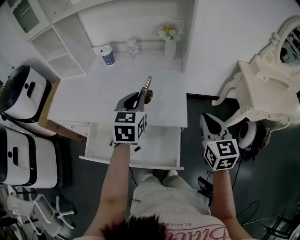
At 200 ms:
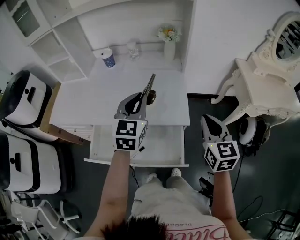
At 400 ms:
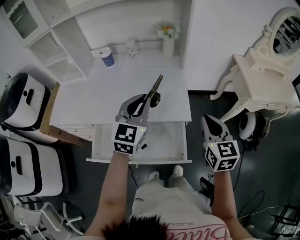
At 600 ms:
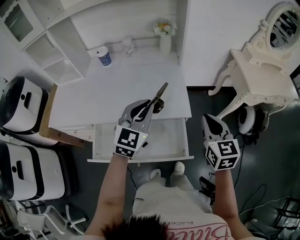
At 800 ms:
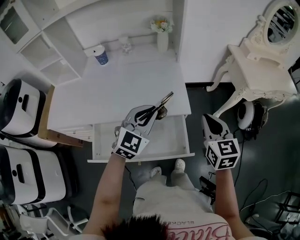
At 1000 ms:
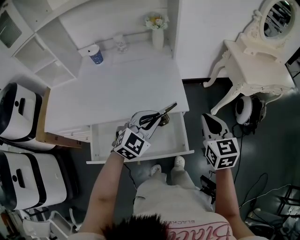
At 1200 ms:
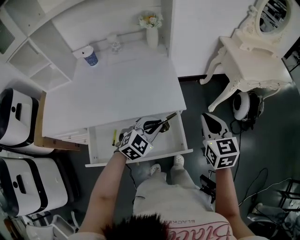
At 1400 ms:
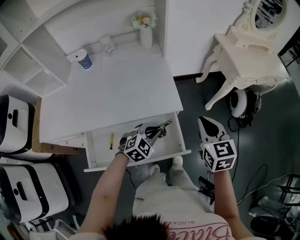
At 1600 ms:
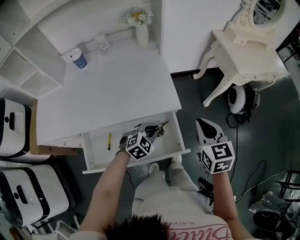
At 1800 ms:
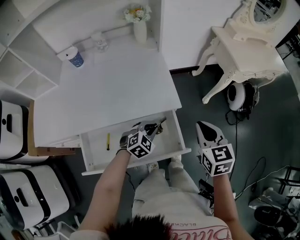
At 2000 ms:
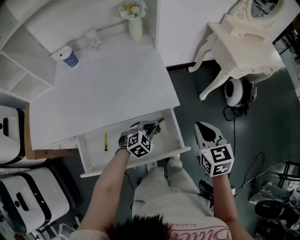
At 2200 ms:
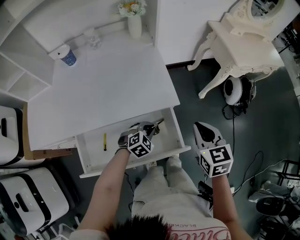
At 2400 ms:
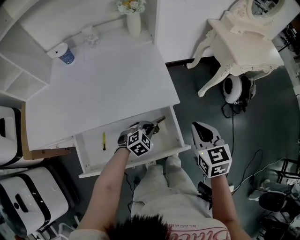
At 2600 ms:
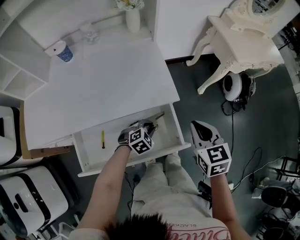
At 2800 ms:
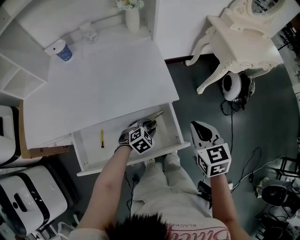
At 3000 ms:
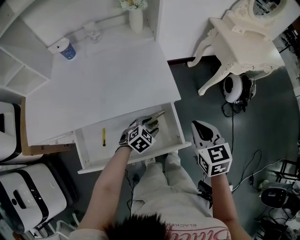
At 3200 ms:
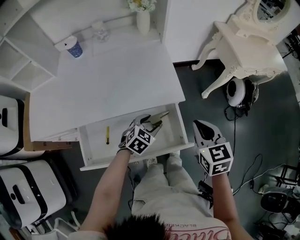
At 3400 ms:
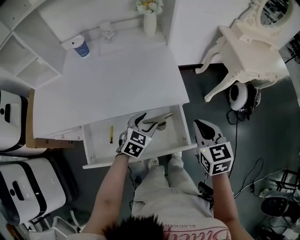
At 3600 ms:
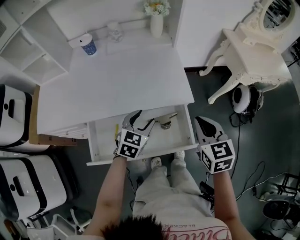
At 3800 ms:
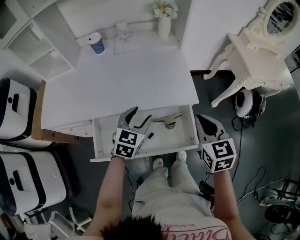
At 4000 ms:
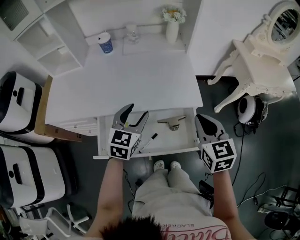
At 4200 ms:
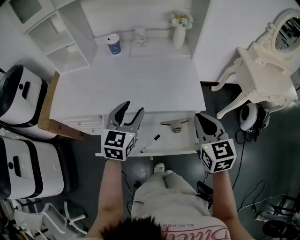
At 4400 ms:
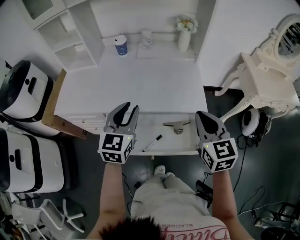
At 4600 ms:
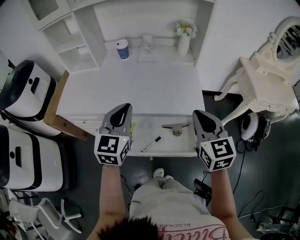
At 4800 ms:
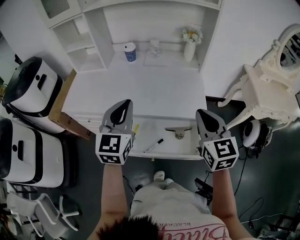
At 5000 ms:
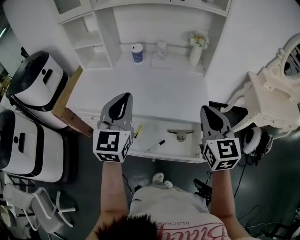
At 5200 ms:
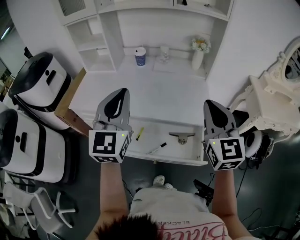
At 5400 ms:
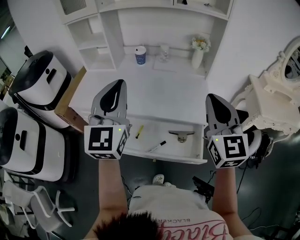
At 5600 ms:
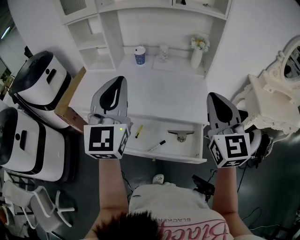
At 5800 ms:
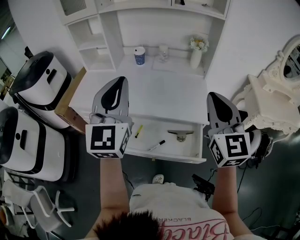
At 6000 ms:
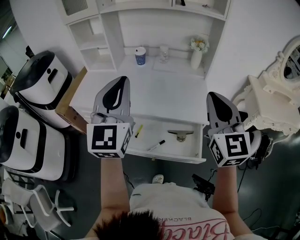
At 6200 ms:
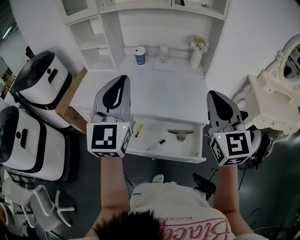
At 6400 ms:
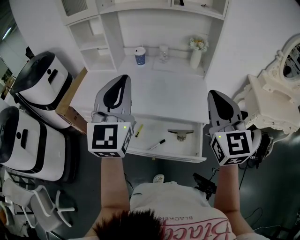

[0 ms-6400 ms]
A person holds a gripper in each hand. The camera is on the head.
0 ms to 1600 ms: The right gripper moves some 10 cm. The left gripper goes approximately 25 cm downward, and changes its angle by approximately 60 degrees.
1600 ms to 3200 ms: The right gripper moves approximately 5 cm. The left gripper goes downward and returns, about 10 cm each way, and opens.
3200 ms to 4800 ms: The left gripper shifts roughly 35 cm upward, points its fingers some 40 degrees further upward, and closes its fingers; the right gripper travels upward by approximately 15 cm, and changes its angle by about 30 degrees.
4800 ms to 6400 ms: Both grippers travel together upward, roughly 15 cm.

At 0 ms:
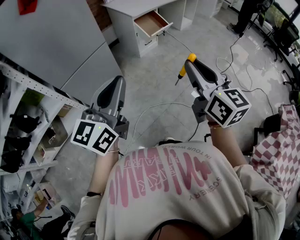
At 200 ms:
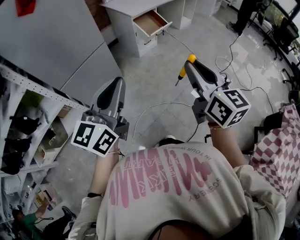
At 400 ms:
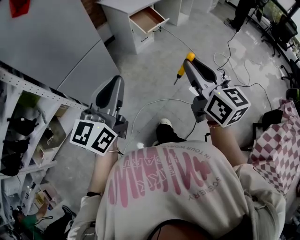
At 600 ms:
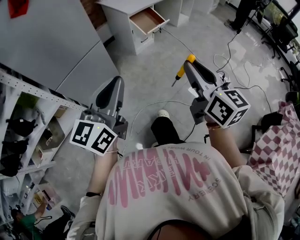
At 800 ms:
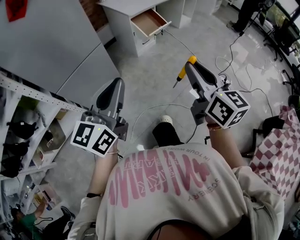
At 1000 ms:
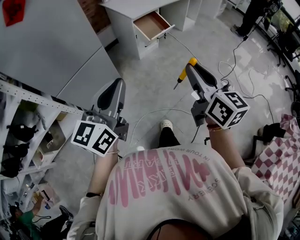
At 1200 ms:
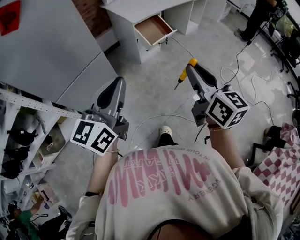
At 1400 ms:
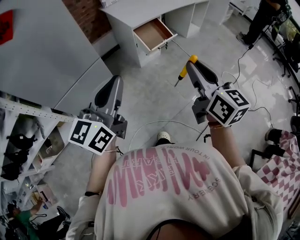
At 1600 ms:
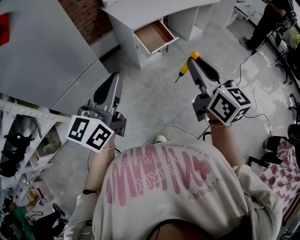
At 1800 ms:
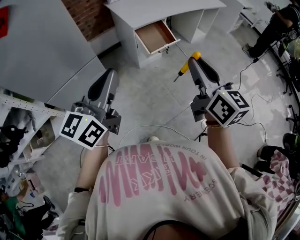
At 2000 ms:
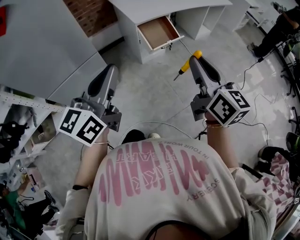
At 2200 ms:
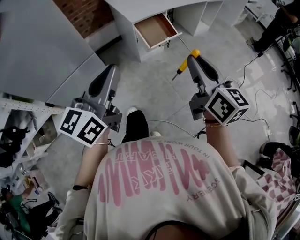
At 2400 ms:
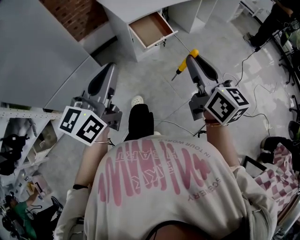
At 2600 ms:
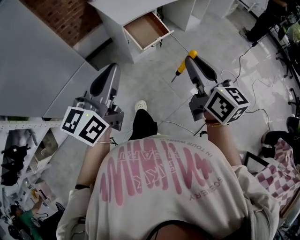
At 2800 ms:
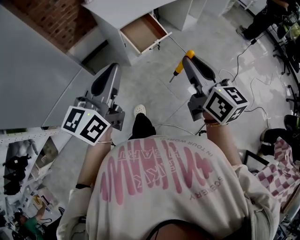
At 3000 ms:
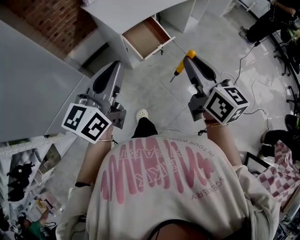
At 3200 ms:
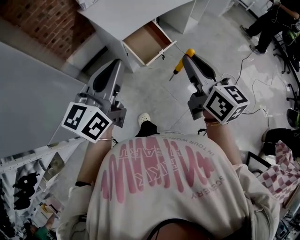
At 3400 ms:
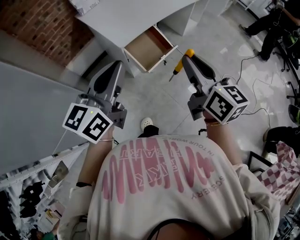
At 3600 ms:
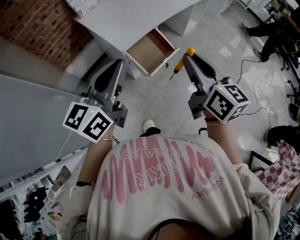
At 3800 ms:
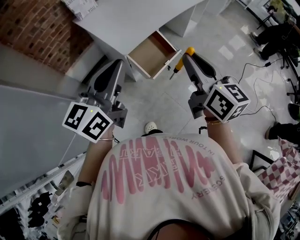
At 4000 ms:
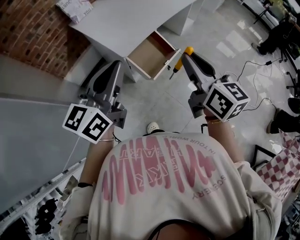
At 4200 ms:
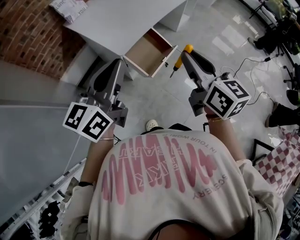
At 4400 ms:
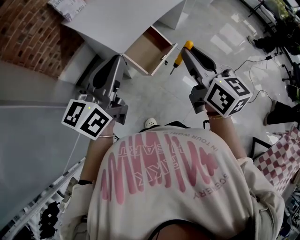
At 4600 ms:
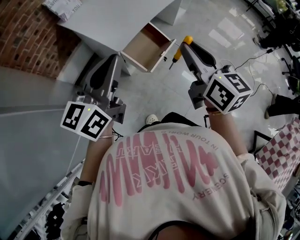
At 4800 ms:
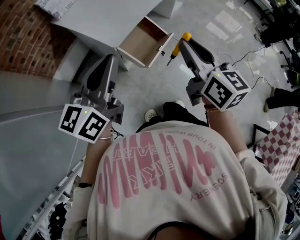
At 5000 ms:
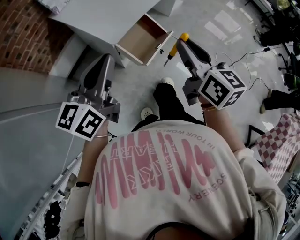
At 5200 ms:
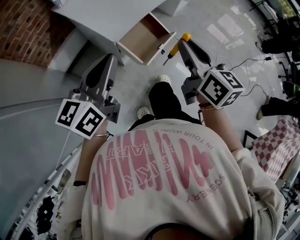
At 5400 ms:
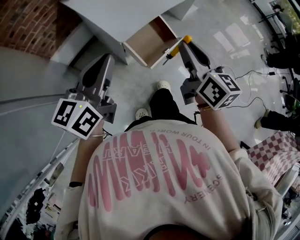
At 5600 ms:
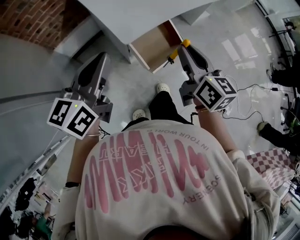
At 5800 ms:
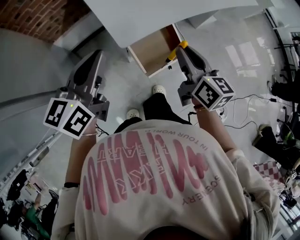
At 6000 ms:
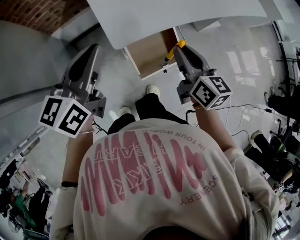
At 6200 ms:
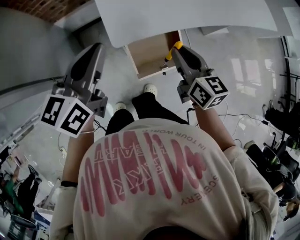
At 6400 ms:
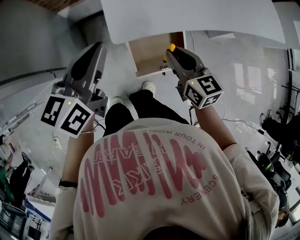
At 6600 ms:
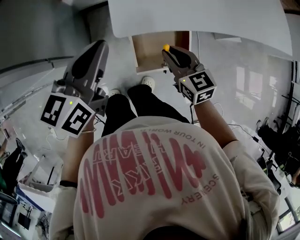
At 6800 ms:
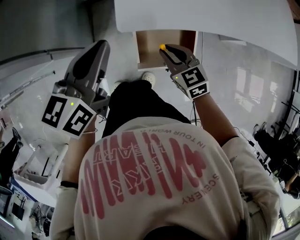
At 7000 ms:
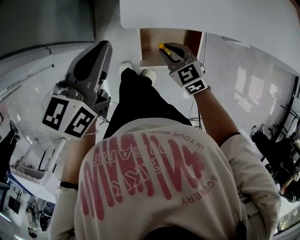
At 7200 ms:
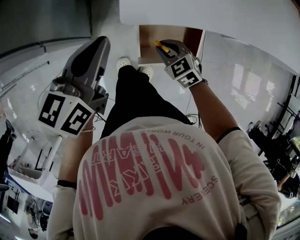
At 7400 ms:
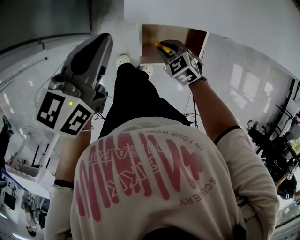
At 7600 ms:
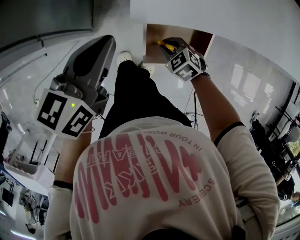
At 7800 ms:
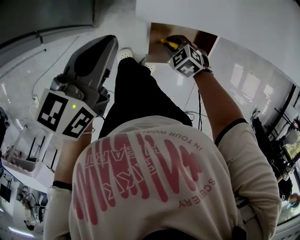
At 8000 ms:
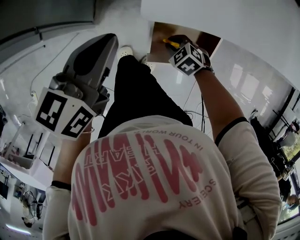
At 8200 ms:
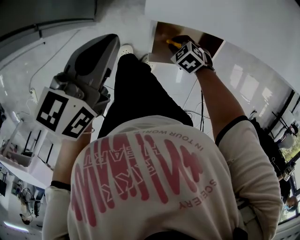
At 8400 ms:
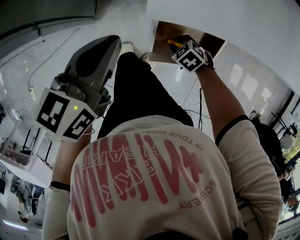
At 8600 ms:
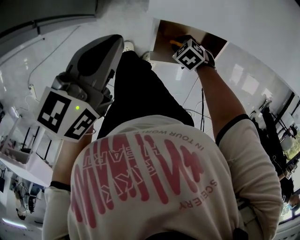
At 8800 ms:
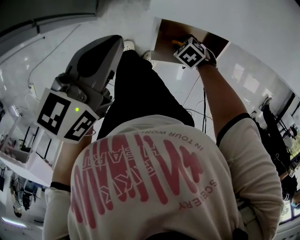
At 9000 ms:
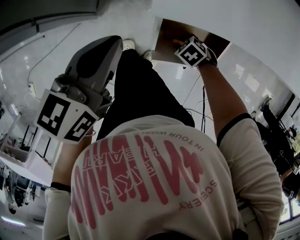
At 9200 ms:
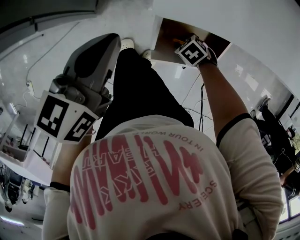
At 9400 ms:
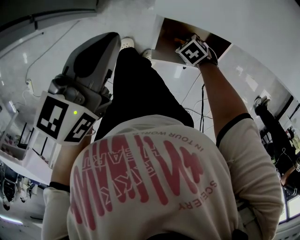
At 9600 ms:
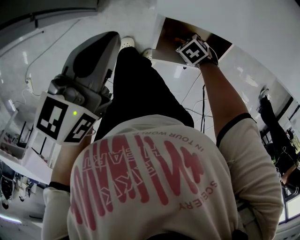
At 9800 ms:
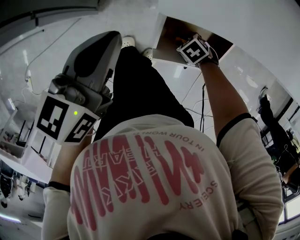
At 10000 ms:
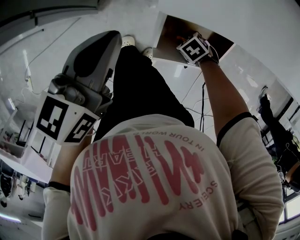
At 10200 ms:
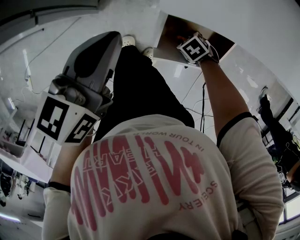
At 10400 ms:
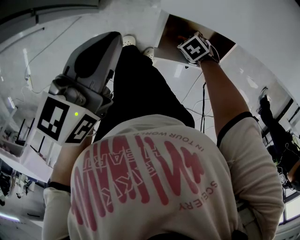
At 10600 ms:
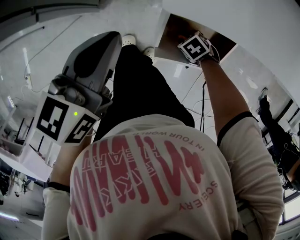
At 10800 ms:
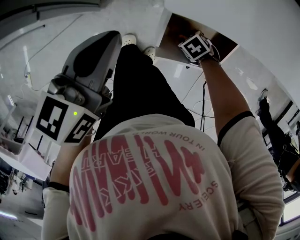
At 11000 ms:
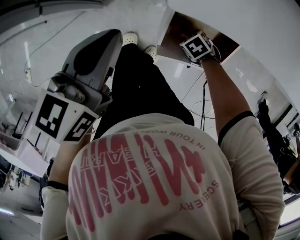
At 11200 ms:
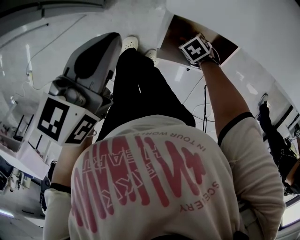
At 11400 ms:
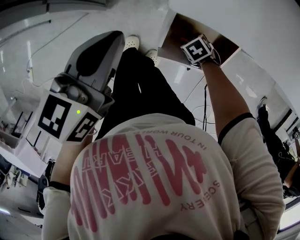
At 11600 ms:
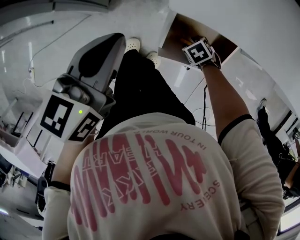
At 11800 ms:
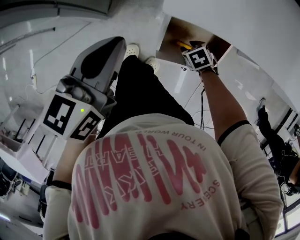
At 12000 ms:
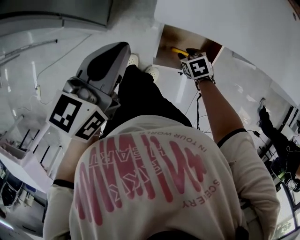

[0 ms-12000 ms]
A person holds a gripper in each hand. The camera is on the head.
0 ms to 1600 ms: The grippers both shift forward by approximately 25 cm.
1600 ms to 3000 ms: The two grippers go about 20 cm forward.
3000 ms to 4400 ms: The two grippers go about 20 cm forward and to the left.
4400 ms to 6000 ms: The right gripper shifts by approximately 25 cm, and turns by approximately 20 degrees, while the left gripper moves roughly 15 cm, and swivels approximately 30 degrees.
6000 ms to 7600 ms: The right gripper is displaced downward by roughly 30 cm, and angles its fingers downward, by roughly 40 degrees, while the left gripper heads downward, covering about 15 cm, and rotates about 20 degrees.
7600 ms to 9000 ms: The right gripper is displaced downward by about 10 cm, and rotates some 20 degrees.
9000 ms to 10400 ms: The grippers stay close to where they were, moving slightly.
10400 ms to 12000 ms: Both grippers move upward, some 10 cm. The right gripper turns by about 30 degrees.

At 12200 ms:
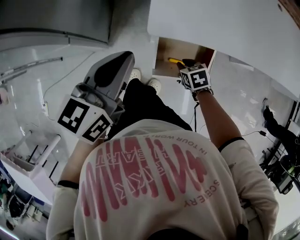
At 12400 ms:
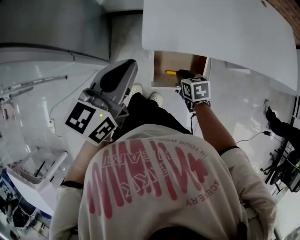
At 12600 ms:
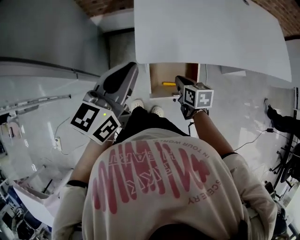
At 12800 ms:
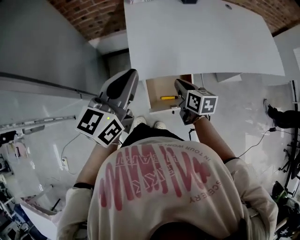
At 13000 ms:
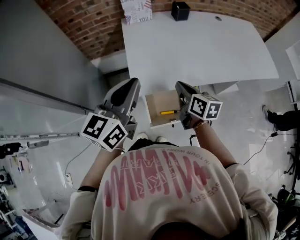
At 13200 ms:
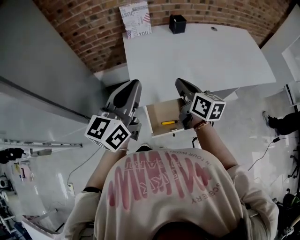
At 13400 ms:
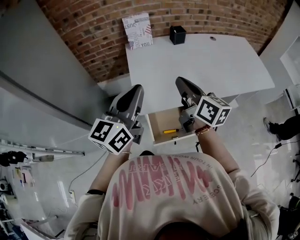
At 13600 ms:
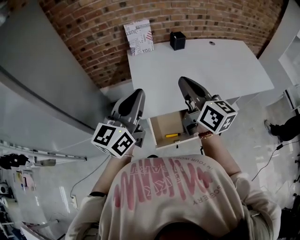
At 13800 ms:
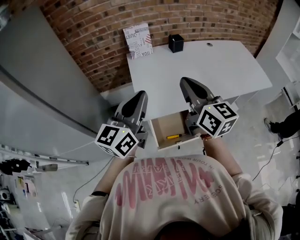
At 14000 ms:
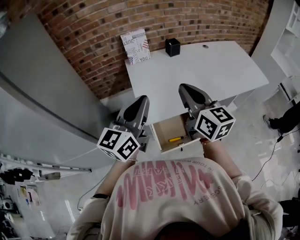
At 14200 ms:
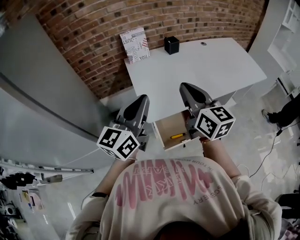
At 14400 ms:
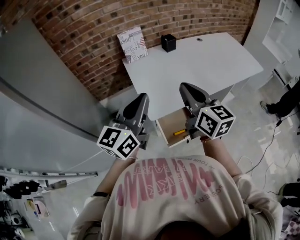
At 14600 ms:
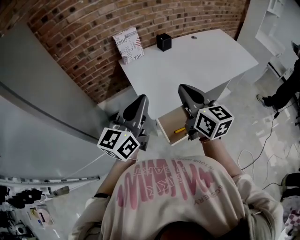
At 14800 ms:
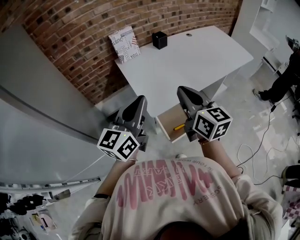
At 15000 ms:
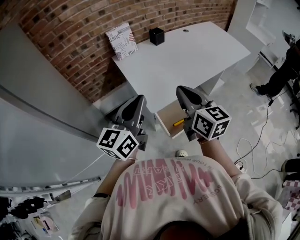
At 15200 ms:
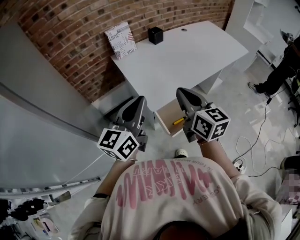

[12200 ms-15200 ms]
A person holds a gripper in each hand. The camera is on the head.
12200 ms to 13800 ms: The right gripper travels upward by about 50 cm, tips its fingers upward by approximately 70 degrees, and closes. Meanwhile the left gripper heads upward and to the right, covering some 25 cm, and changes its angle by about 30 degrees.
13800 ms to 15200 ms: The left gripper travels to the left by roughly 10 cm. Meanwhile the right gripper goes about 10 cm backward and to the left, and rotates some 20 degrees.

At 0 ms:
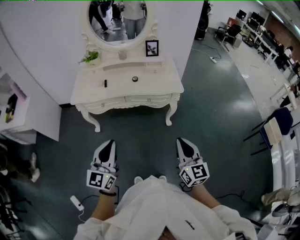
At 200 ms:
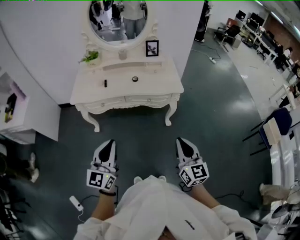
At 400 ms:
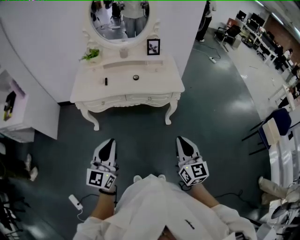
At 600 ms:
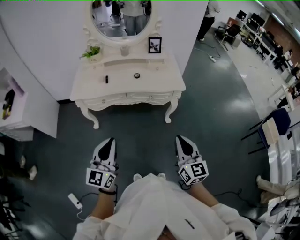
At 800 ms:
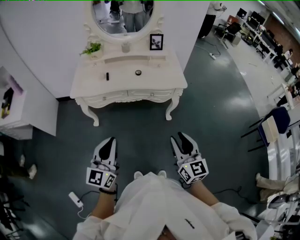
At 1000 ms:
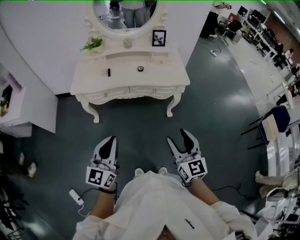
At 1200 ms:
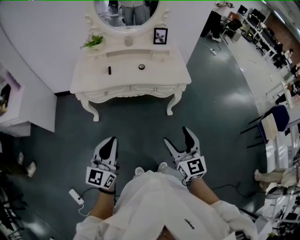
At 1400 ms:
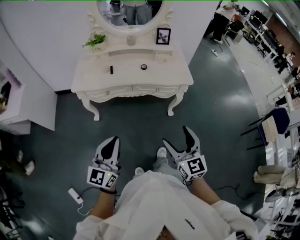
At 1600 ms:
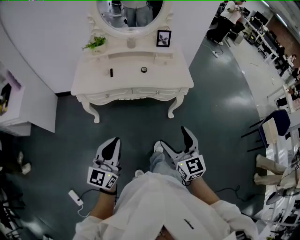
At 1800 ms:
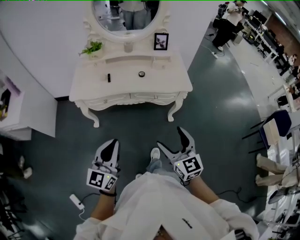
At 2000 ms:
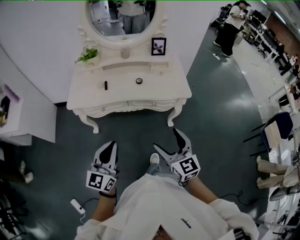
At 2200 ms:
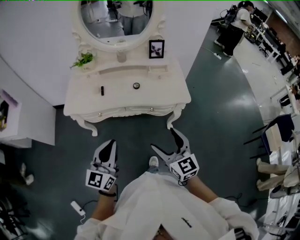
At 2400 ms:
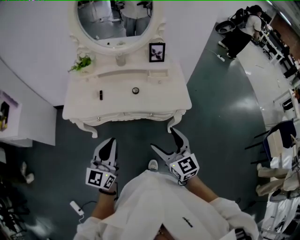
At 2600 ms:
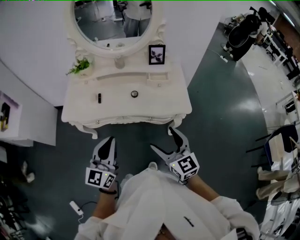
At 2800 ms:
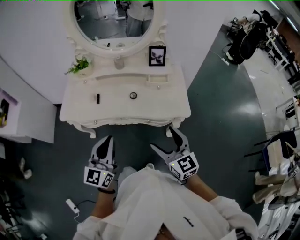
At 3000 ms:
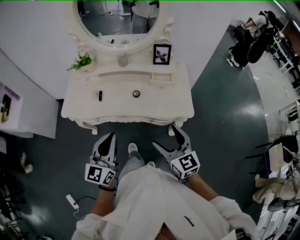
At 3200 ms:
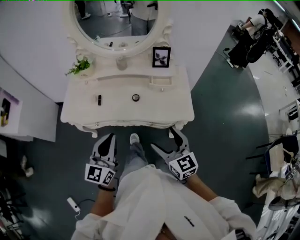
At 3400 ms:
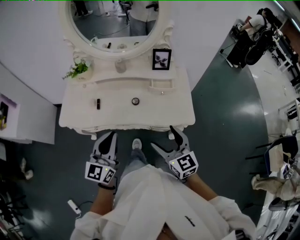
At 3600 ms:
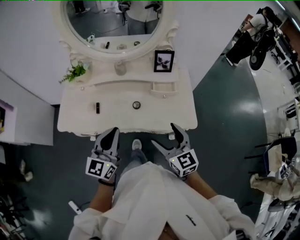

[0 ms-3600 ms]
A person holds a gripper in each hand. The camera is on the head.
0 ms to 1800 ms: The right gripper heads to the left and forward, covering some 15 cm, and opens its fingers. Meanwhile the left gripper travels forward and to the left by about 10 cm.
1800 ms to 3600 ms: Both grippers move forward, about 35 cm.
